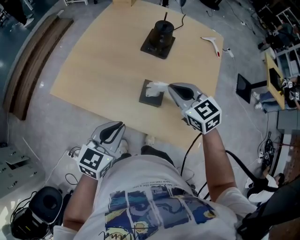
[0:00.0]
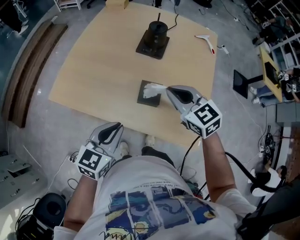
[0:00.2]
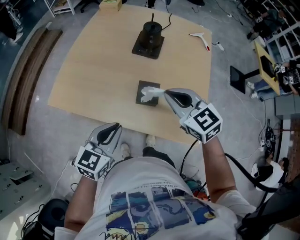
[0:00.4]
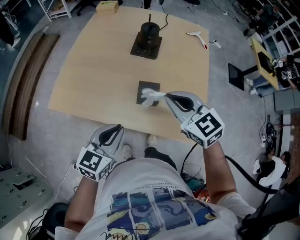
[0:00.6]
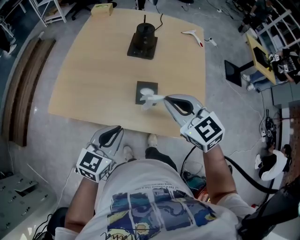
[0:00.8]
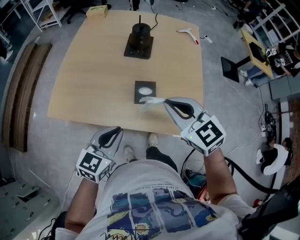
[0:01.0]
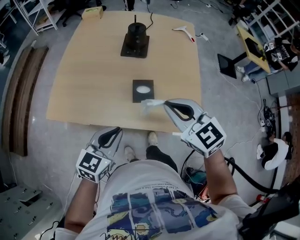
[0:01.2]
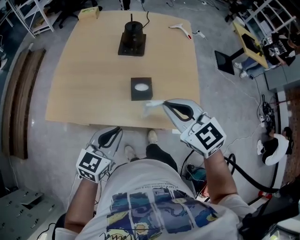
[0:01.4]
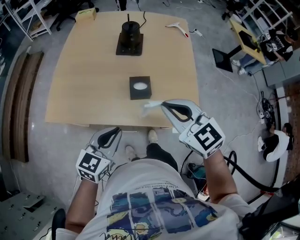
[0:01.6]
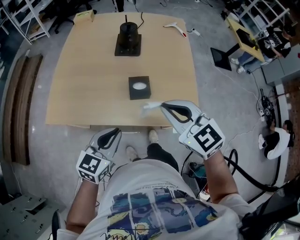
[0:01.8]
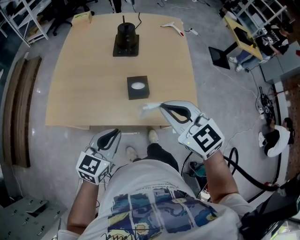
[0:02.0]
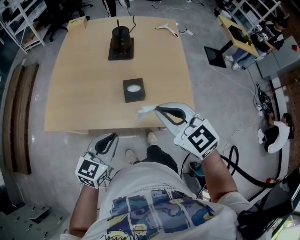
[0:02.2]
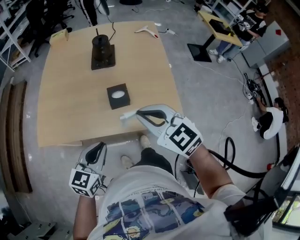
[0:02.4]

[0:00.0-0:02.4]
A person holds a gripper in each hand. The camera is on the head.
0:00.0 to 0:01.2: The right gripper moves backward and upward, approximately 15 cm.
0:01.2 to 0:02.4: The right gripper travels backward by some 5 cm.

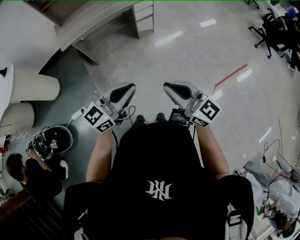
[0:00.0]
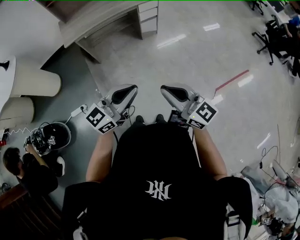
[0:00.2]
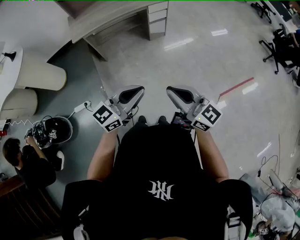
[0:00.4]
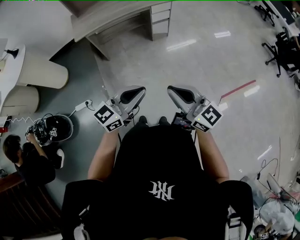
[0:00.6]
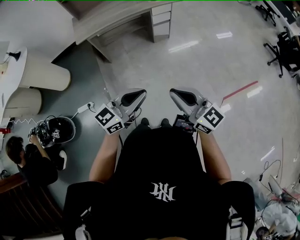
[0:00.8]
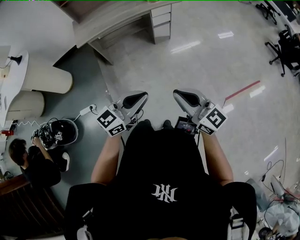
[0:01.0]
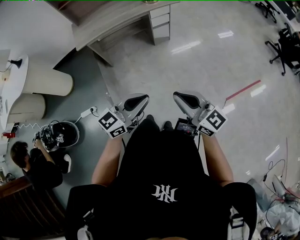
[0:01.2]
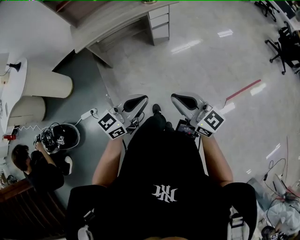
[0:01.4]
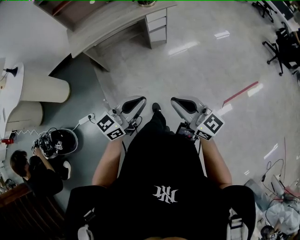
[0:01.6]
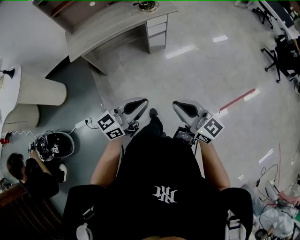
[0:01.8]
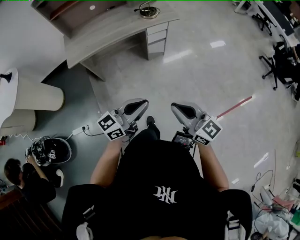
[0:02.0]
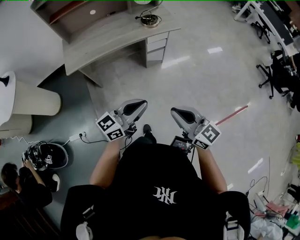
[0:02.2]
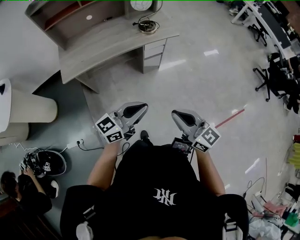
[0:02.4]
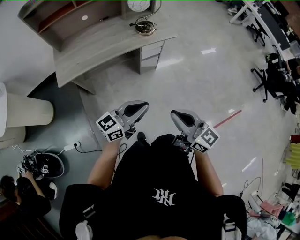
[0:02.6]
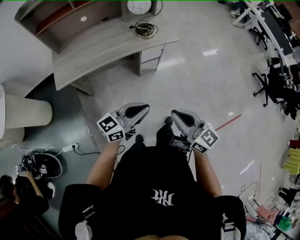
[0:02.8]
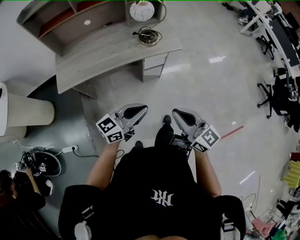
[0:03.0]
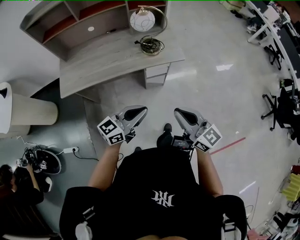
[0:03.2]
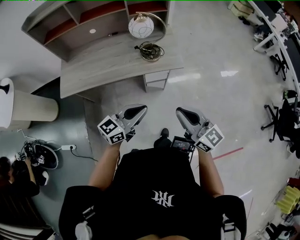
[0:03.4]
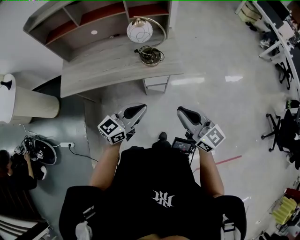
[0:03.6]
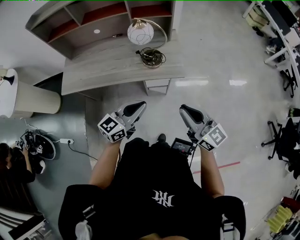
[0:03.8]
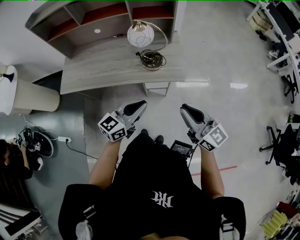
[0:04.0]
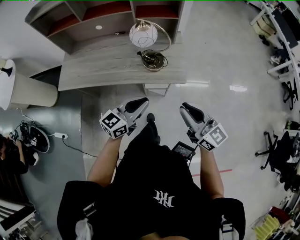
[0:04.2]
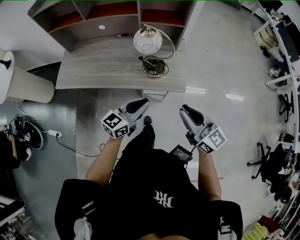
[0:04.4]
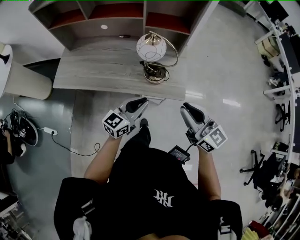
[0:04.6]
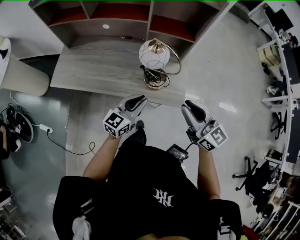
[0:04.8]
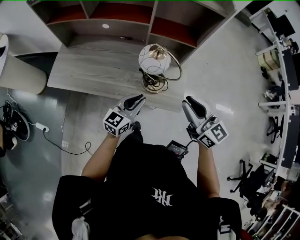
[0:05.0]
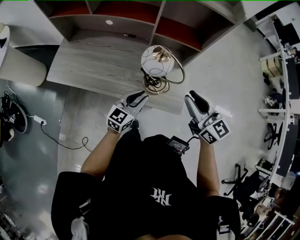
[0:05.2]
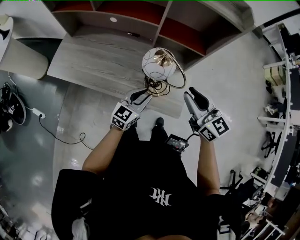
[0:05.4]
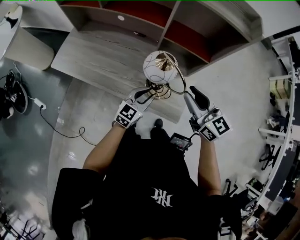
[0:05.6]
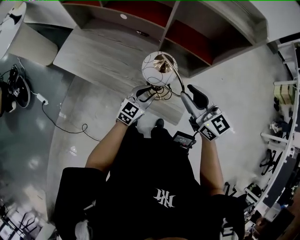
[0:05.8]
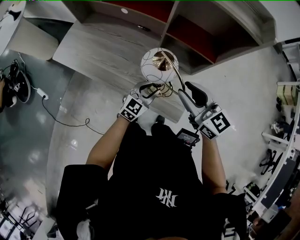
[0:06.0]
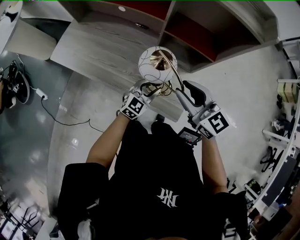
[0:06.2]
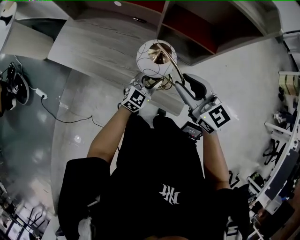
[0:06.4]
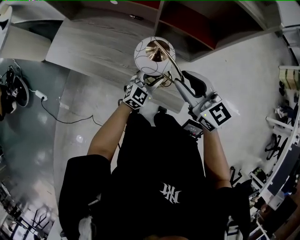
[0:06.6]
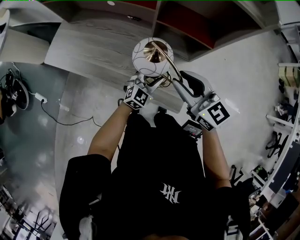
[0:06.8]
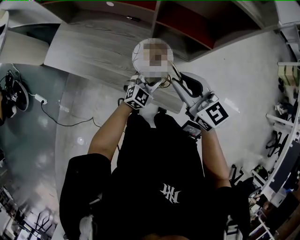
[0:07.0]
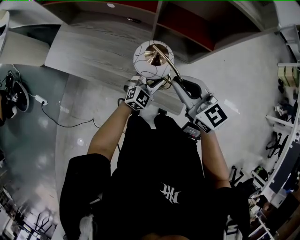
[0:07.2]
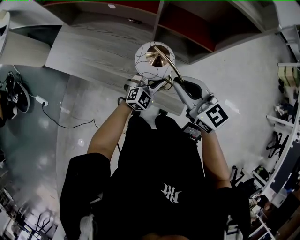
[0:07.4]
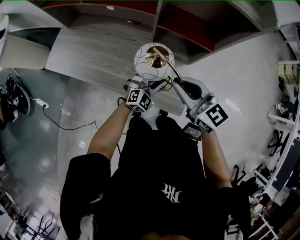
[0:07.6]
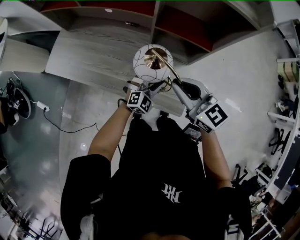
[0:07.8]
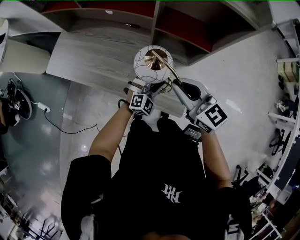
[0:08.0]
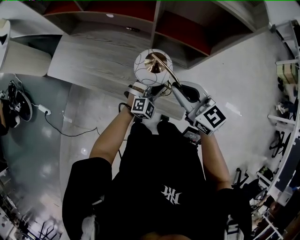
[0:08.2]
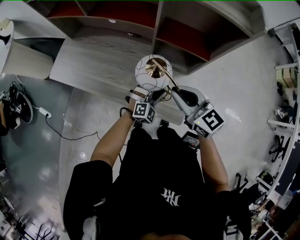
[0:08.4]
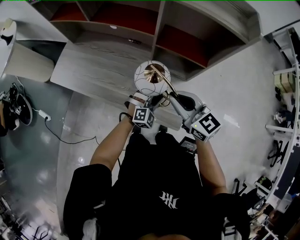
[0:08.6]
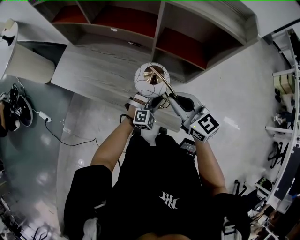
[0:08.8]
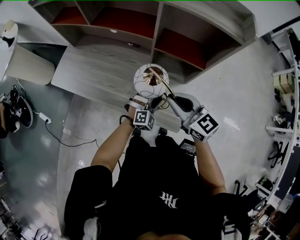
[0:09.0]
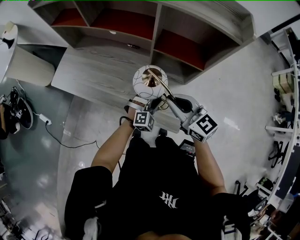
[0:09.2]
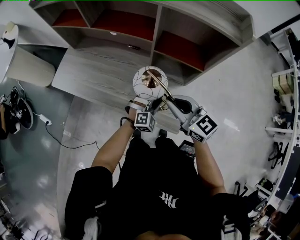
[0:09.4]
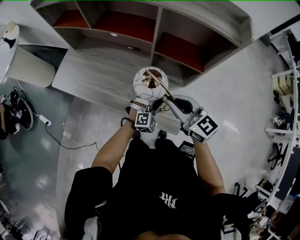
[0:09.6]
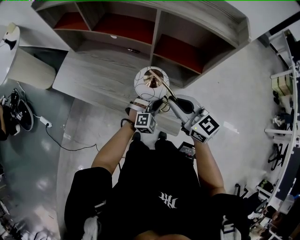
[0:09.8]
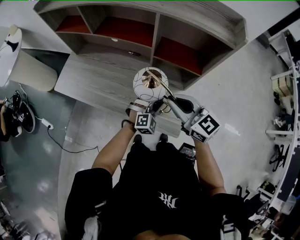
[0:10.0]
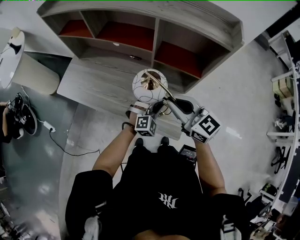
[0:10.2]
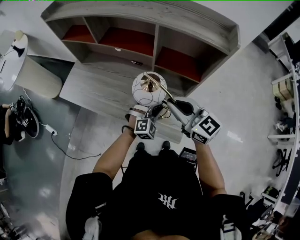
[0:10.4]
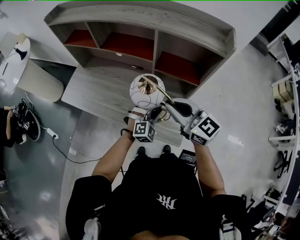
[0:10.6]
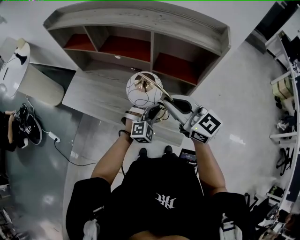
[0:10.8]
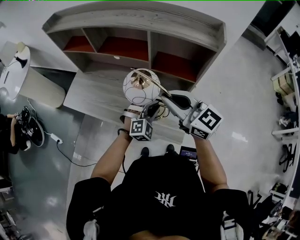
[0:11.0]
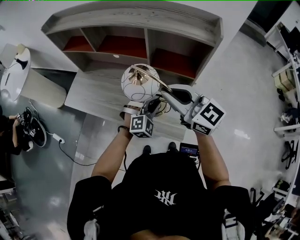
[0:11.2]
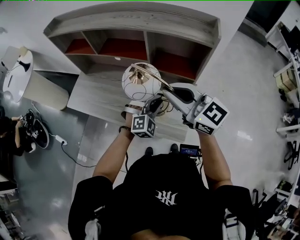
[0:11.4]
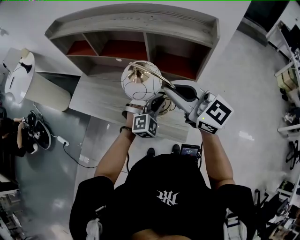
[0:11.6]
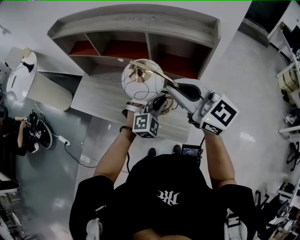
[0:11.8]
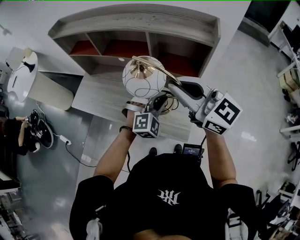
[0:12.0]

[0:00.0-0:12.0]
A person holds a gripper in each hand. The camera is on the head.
0:00.0 to 0:01.6: Both grippers move forward, some 5 cm.
0:01.6 to 0:03.0: Both grippers travel together forward, about 40 cm.
0:03.0 to 0:04.4: The grippers both shift forward and to the right by approximately 30 cm. The left gripper swivels roughly 30 degrees.
0:04.4 to 0:06.0: The right gripper is displaced forward by approximately 30 cm, and changes its angle by roughly 30 degrees; the left gripper heads forward and downward, covering about 30 cm, and rotates roughly 30 degrees.
0:06.0 to 0:07.6: The right gripper closes, while the left gripper moves approximately 5 cm, and swivels some 30 degrees.
0:07.6 to 0:09.0: There are only small adjustments of the grippers.
0:09.0 to 0:10.4: Both grippers move upward, some 5 cm.
0:10.4 to 0:12.0: The grippers both shift upward by some 15 cm.

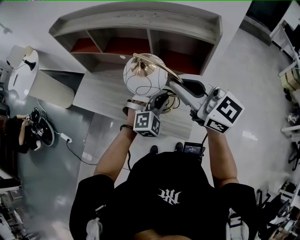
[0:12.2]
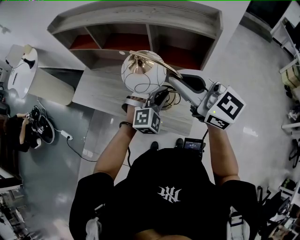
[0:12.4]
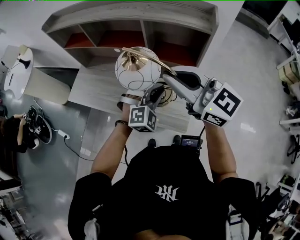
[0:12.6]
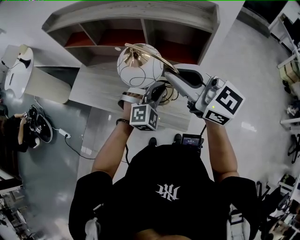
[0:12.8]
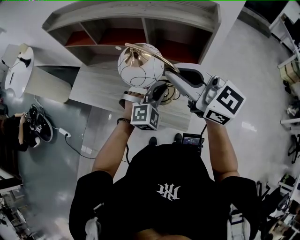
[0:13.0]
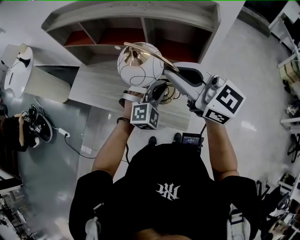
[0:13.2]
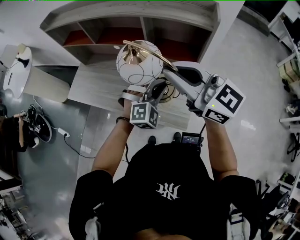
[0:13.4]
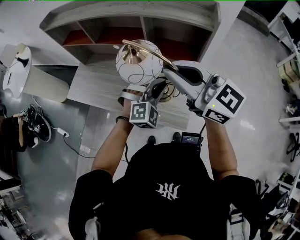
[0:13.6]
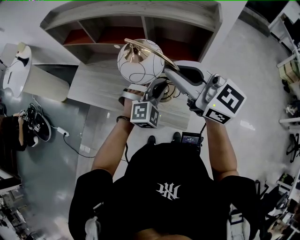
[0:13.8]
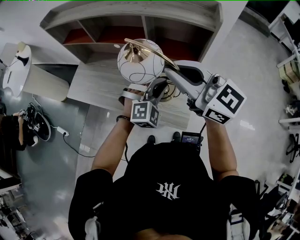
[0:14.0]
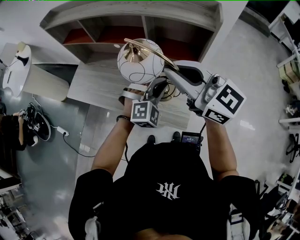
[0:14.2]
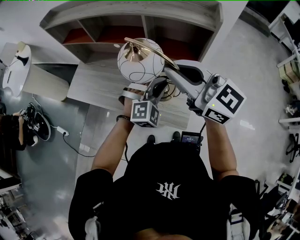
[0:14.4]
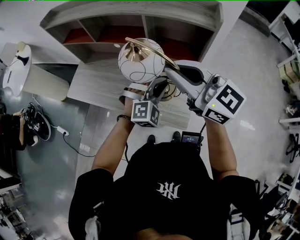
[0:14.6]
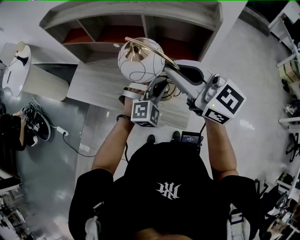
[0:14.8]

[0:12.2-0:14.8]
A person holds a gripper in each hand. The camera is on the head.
0:12.2 to 0:14.8: Neither gripper changes place.

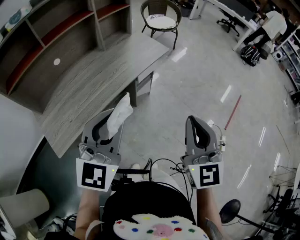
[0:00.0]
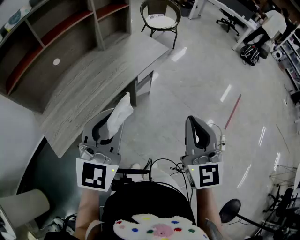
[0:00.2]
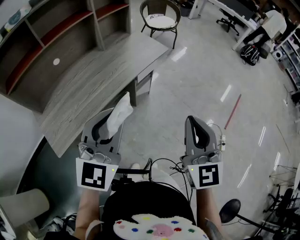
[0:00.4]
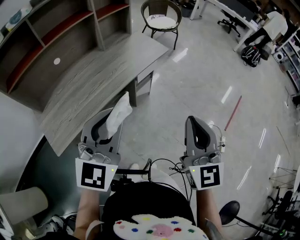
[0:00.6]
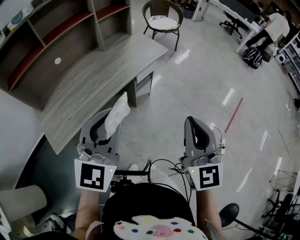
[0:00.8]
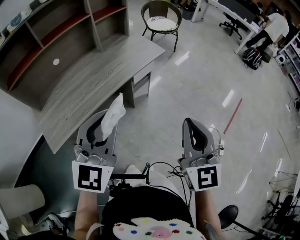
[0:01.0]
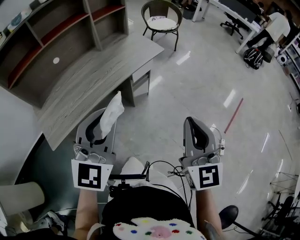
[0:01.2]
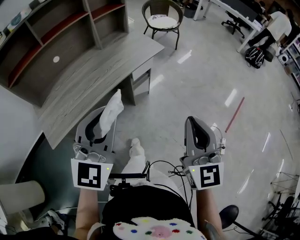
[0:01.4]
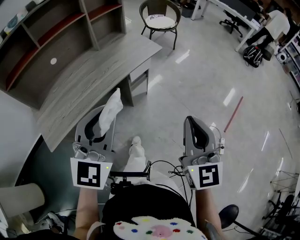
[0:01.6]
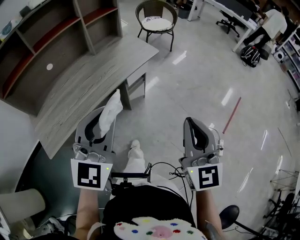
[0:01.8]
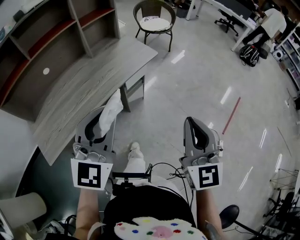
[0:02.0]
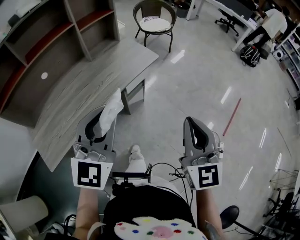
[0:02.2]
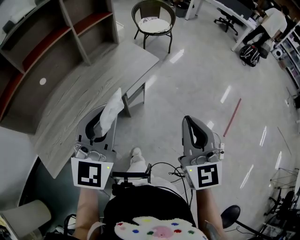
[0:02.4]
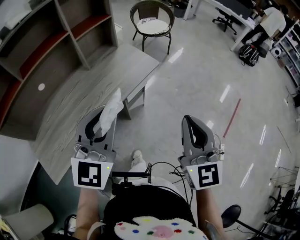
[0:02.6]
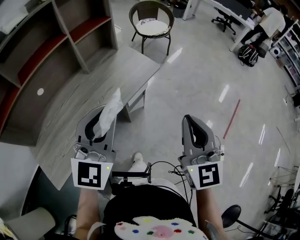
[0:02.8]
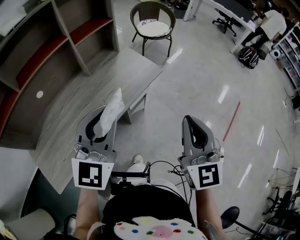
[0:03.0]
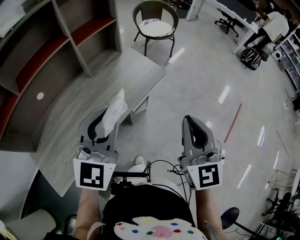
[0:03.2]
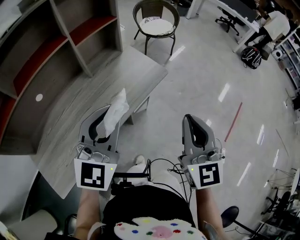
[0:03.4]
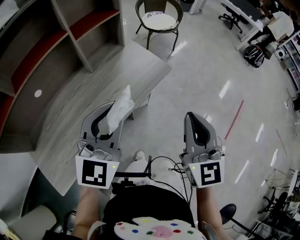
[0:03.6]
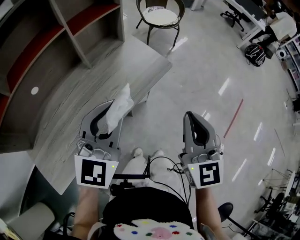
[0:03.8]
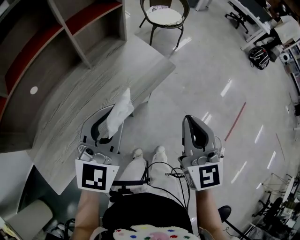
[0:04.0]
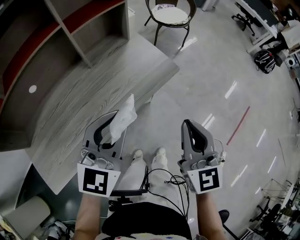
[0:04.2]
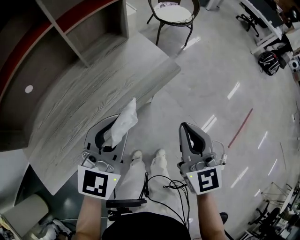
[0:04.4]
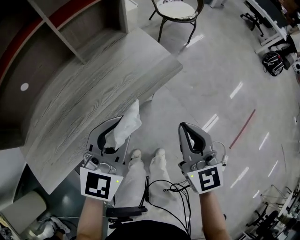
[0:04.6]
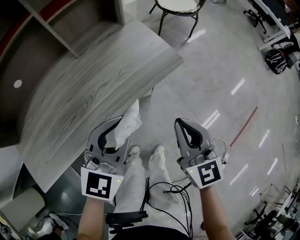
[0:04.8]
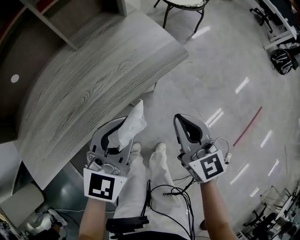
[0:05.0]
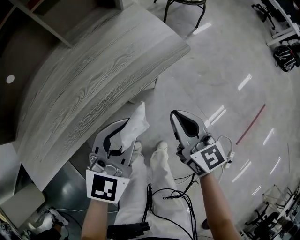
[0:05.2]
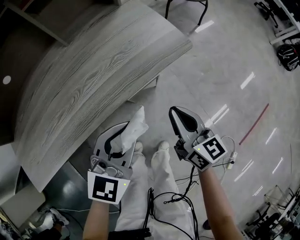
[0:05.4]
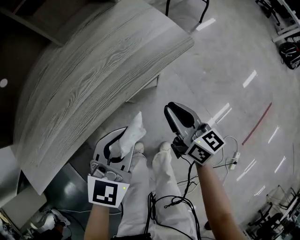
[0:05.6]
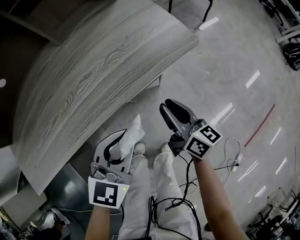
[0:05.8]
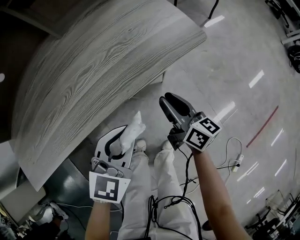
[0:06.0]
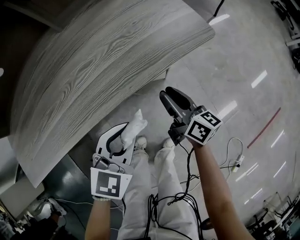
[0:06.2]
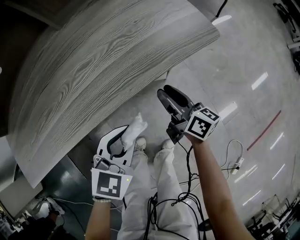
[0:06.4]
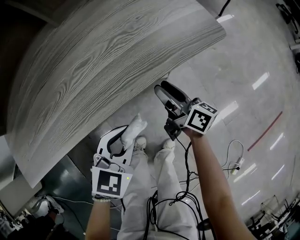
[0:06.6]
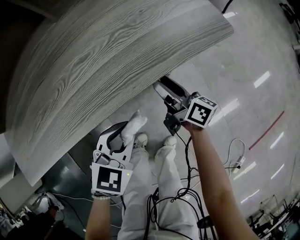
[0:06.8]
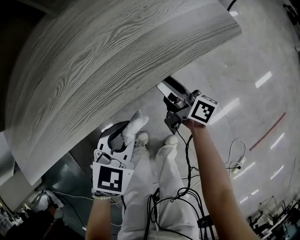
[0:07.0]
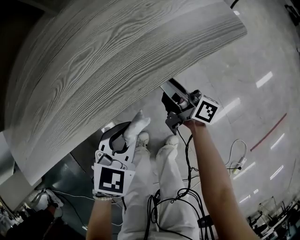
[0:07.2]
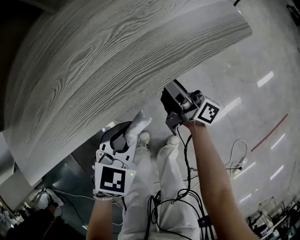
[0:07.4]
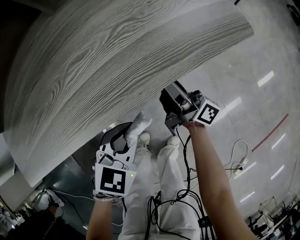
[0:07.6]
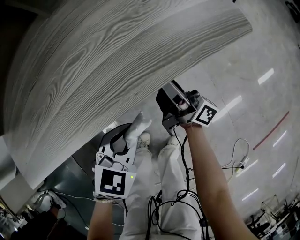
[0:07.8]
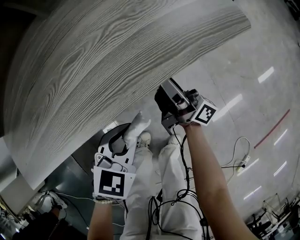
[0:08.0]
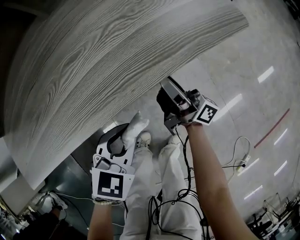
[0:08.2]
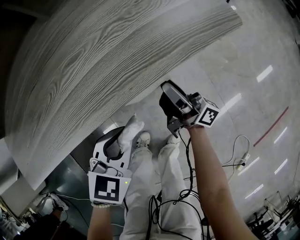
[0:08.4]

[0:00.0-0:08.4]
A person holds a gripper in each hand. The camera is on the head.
0:00.0 to 0:01.4: The two grippers go about 5 cm to the right.
0:01.4 to 0:02.8: The grippers both shift forward by approximately 20 cm.
0:02.8 to 0:04.2: Both grippers move forward and downward, approximately 15 cm.
0:04.2 to 0:05.6: The two grippers go about 25 cm downward. The right gripper turns by approximately 50 degrees.
0:05.6 to 0:07.0: The left gripper goes about 15 cm downward; the right gripper is displaced downward, forward and to the left by roughly 20 cm, changes its angle by about 30 degrees, and opens its fingers.
0:07.0 to 0:08.4: The right gripper changes its angle by about 20 degrees, and closes up.
